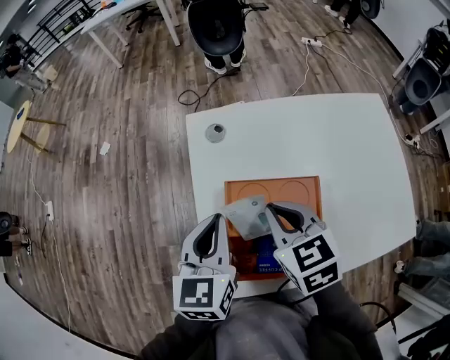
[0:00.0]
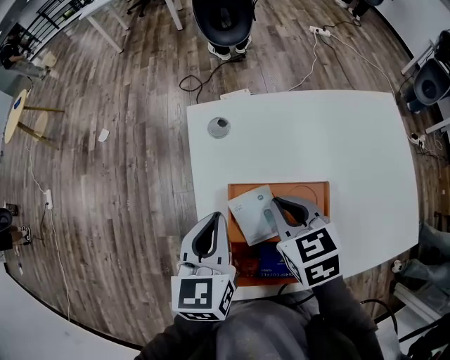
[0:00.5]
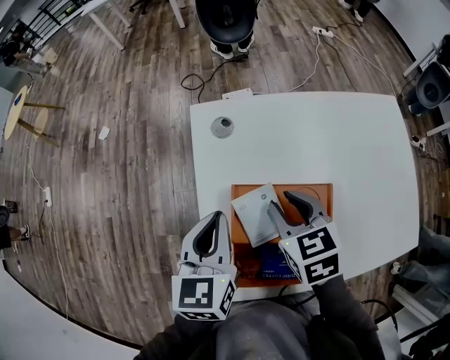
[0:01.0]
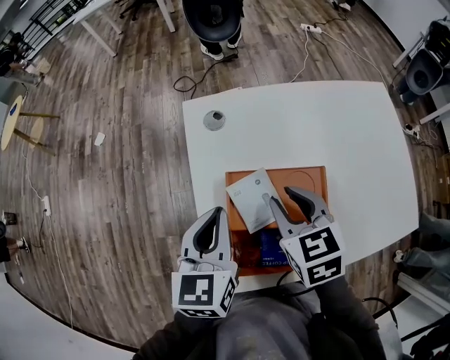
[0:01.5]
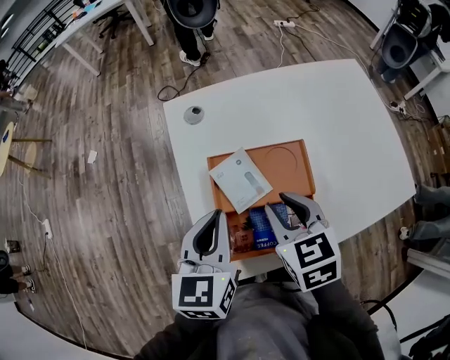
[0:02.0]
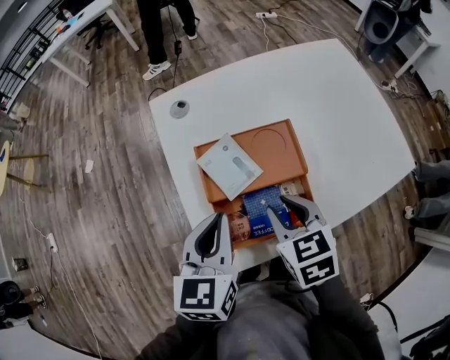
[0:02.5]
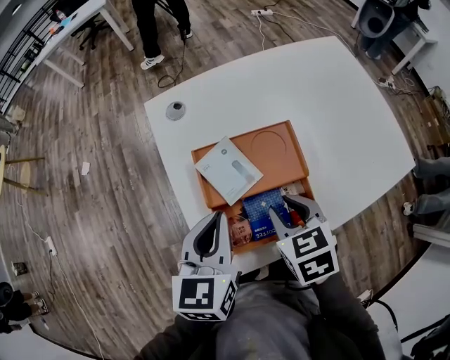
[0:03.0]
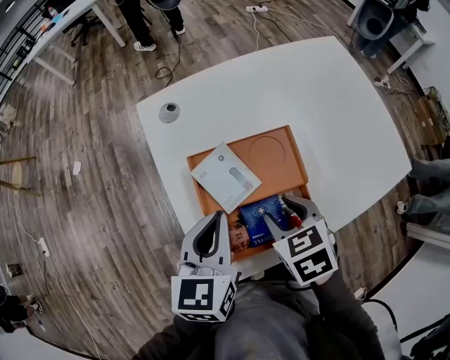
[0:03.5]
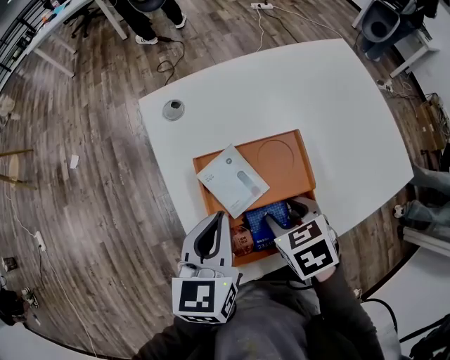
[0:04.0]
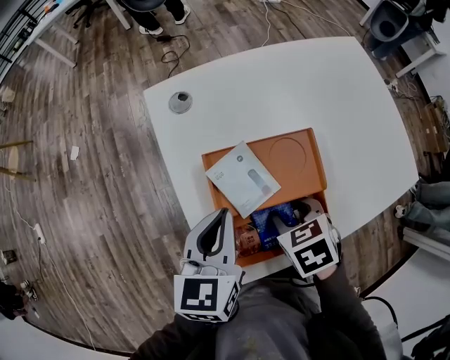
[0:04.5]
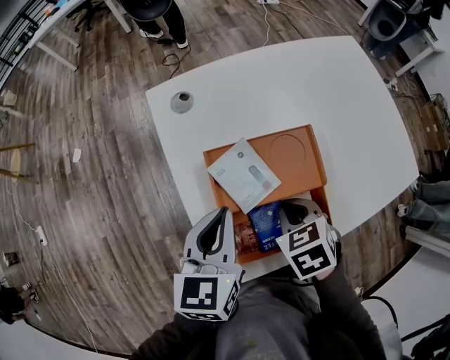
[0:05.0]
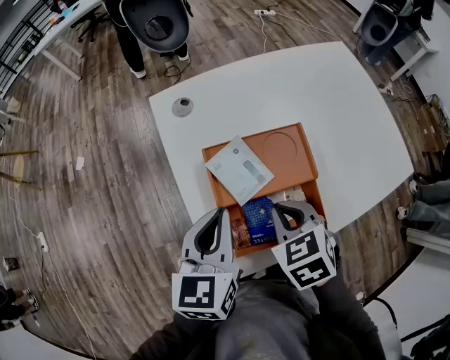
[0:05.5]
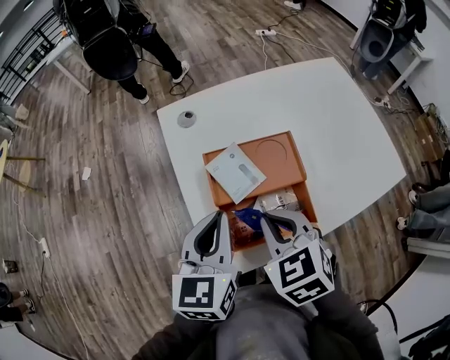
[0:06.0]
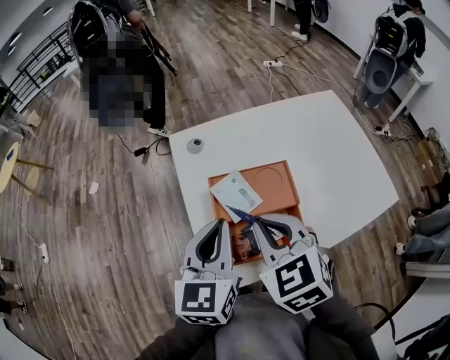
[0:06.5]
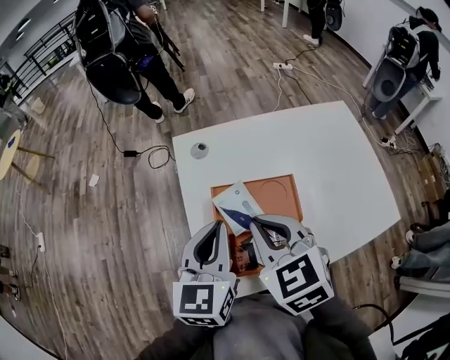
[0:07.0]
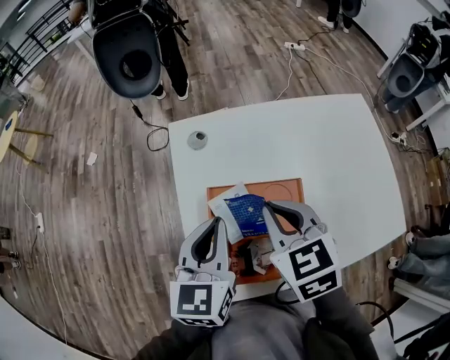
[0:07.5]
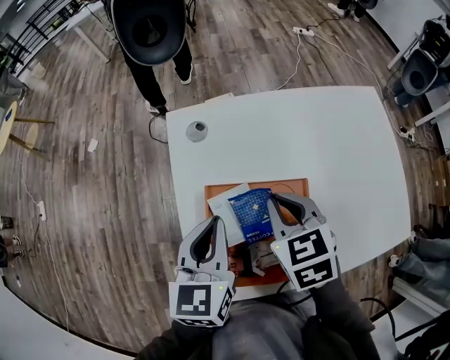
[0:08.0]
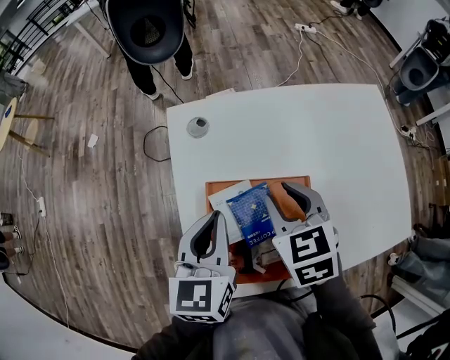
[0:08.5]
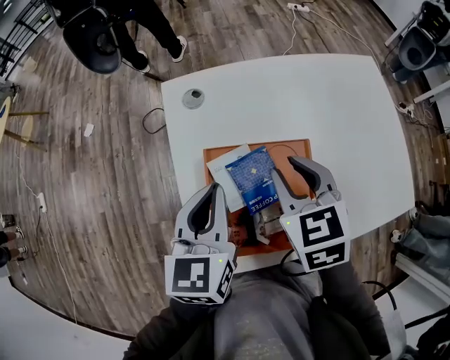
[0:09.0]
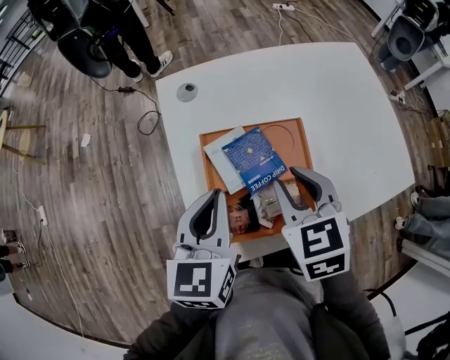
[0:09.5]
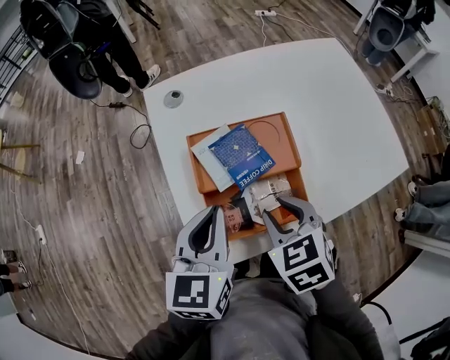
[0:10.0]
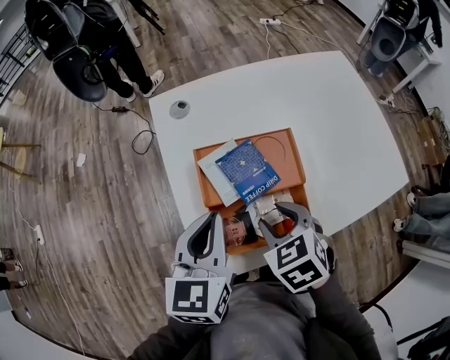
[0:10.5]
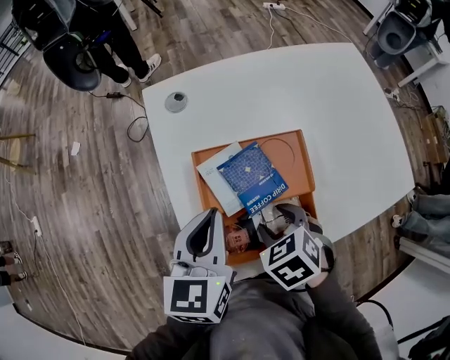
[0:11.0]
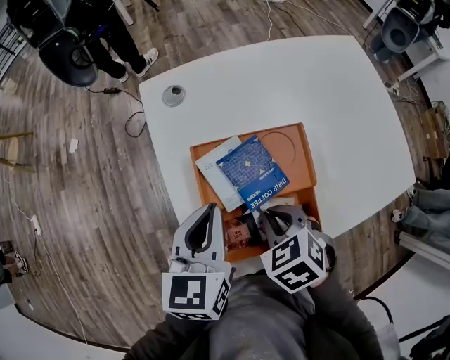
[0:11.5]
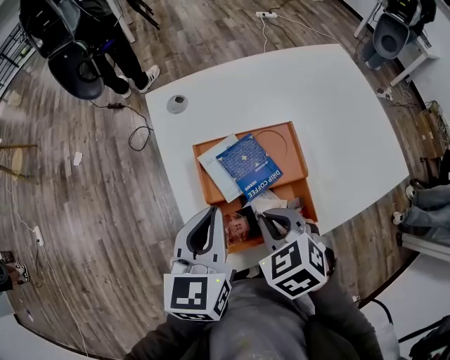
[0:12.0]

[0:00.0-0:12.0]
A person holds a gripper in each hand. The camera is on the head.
0:00.0 to 0:02.0: The right gripper shifts some 5 cm backward, and opens; the left gripper moves some 5 cm.
0:02.0 to 0:04.0: The right gripper goes roughly 10 cm downward, turns by about 20 degrees, and opens.
0:04.0 to 0:06.0: The right gripper moves upward and to the left, approximately 10 cm, changes its angle by about 20 degrees, and closes its fingers. The left gripper moves upward, roughly 5 cm.
0:06.0 to 0:08.0: The right gripper travels forward by approximately 15 cm. Meanwhile the left gripper is displaced forward by roughly 10 cm.
0:08.0 to 0:10.0: The left gripper heads backward, covering approximately 10 cm. Meanwhile the right gripper travels backward by about 15 cm, and opens.
0:10.0 to 0:12.0: The right gripper closes up.

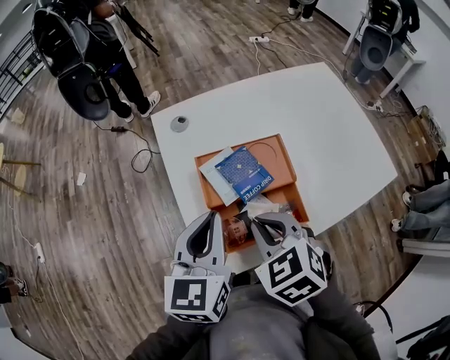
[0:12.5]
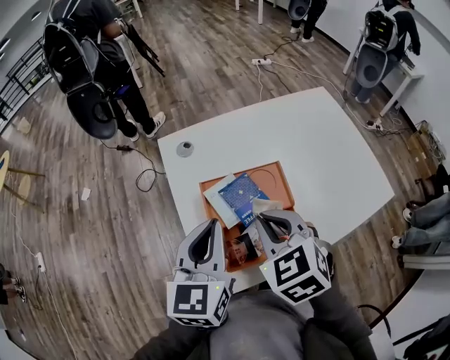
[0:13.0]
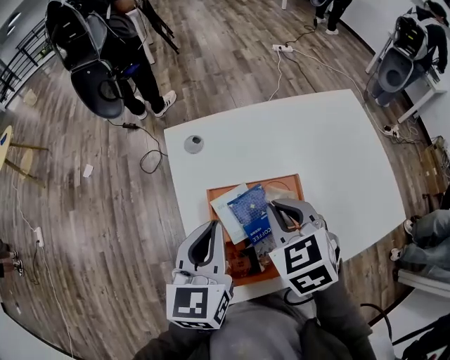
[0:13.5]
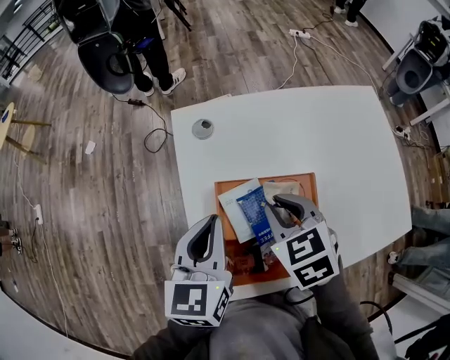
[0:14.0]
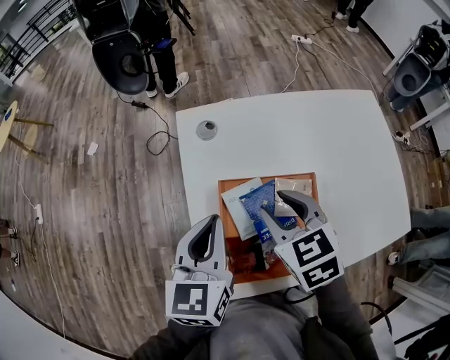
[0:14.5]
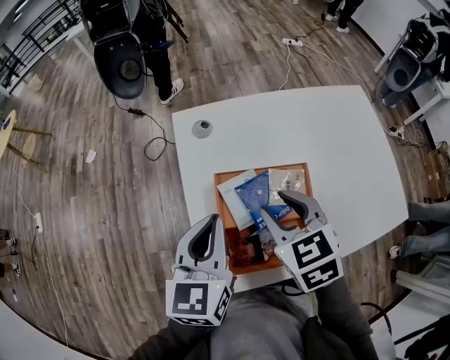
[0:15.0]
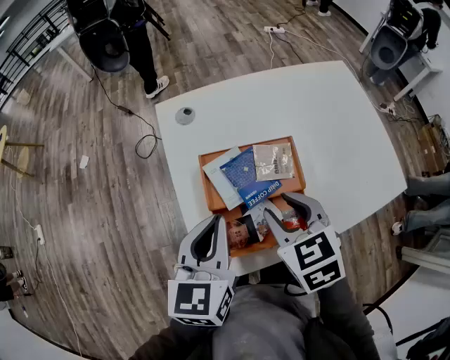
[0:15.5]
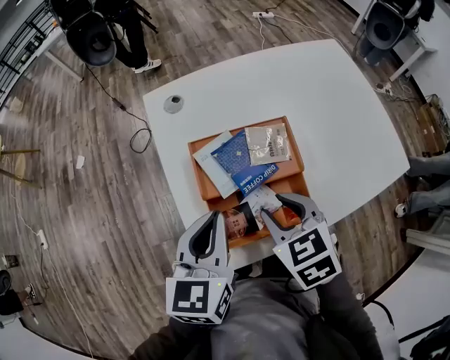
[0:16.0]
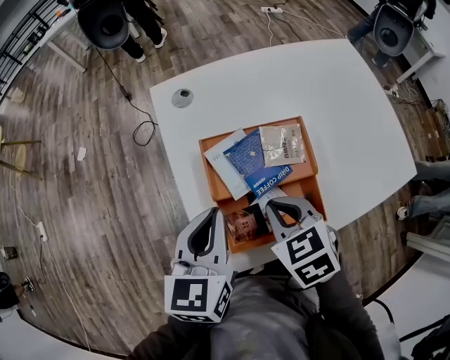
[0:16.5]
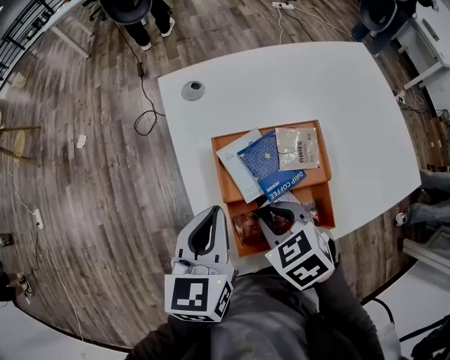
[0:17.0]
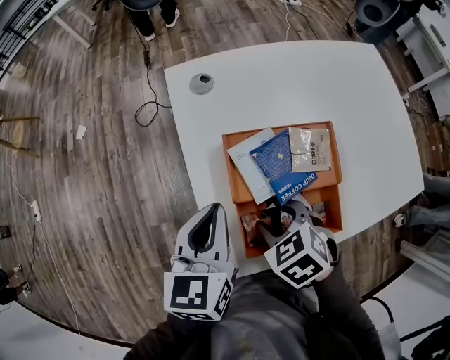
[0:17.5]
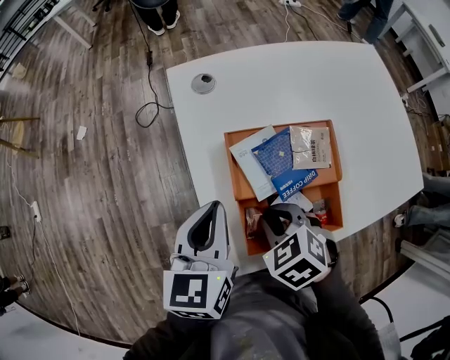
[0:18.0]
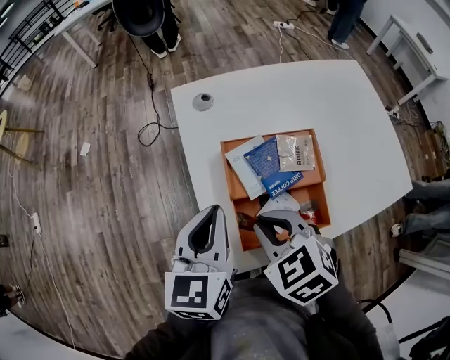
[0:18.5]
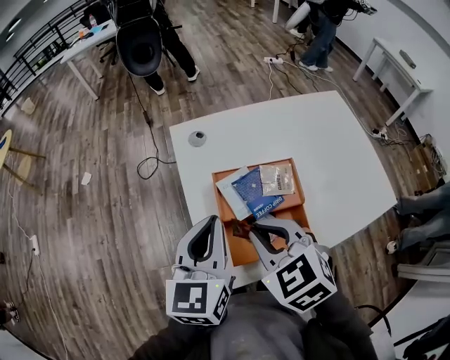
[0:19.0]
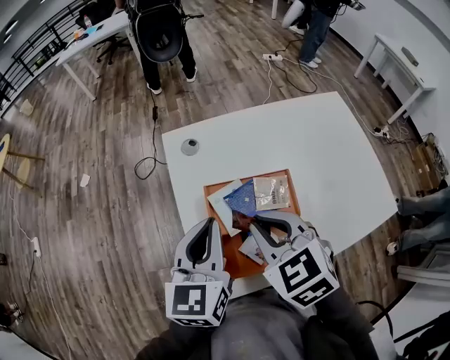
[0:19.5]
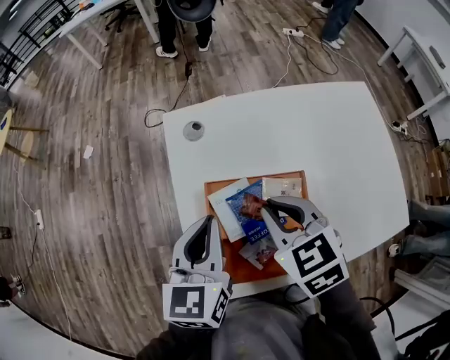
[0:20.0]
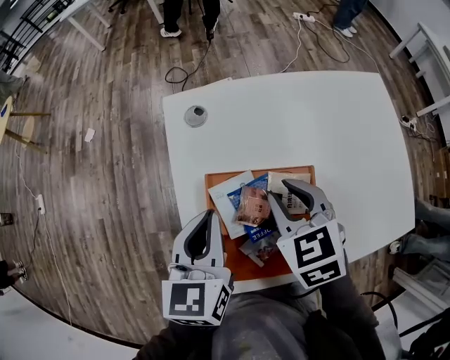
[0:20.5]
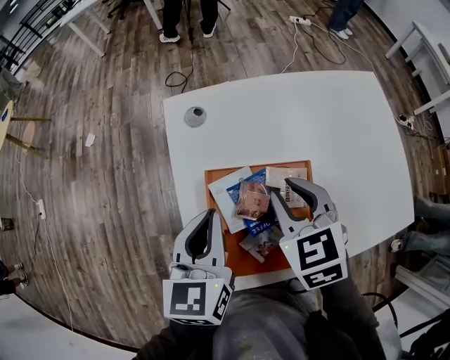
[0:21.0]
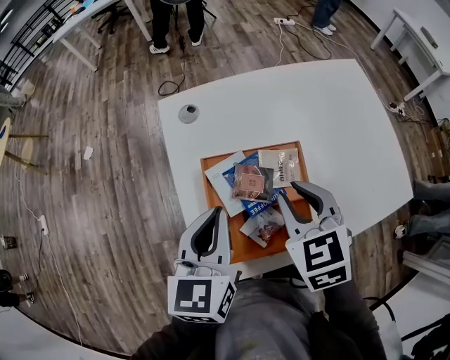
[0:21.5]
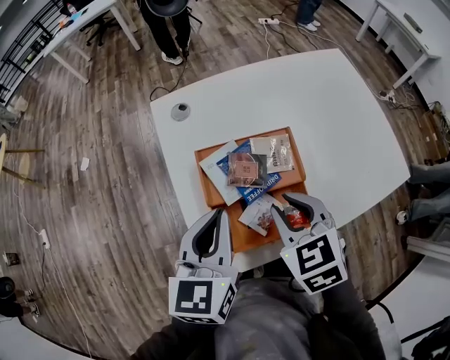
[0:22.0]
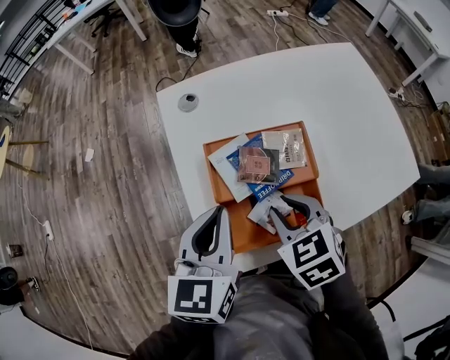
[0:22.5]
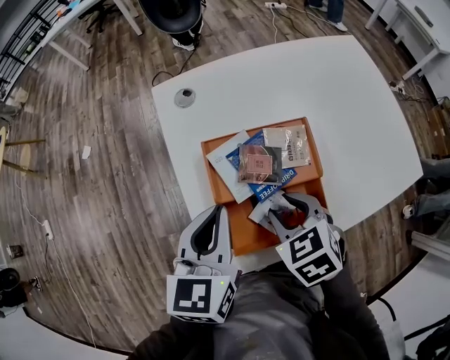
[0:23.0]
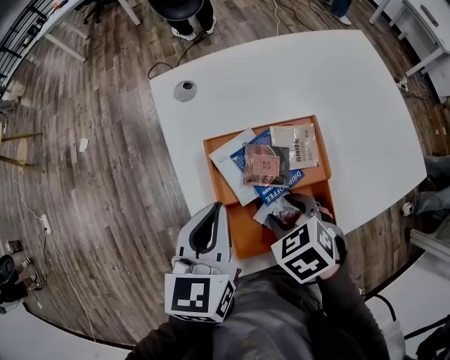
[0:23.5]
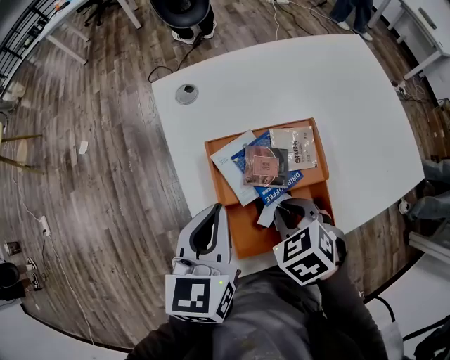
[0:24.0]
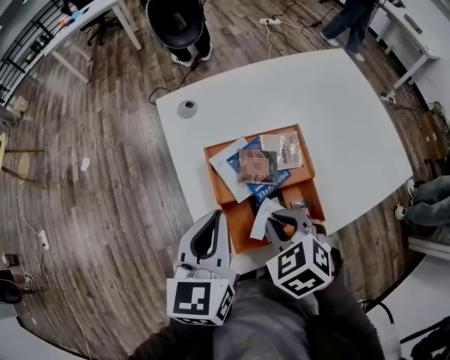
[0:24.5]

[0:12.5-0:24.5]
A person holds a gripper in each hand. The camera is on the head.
0:12.5 to 0:14.5: The right gripper goes approximately 15 cm forward, and opens its fingers; the left gripper moves forward, about 10 cm.
0:14.5 to 0:16.5: The right gripper travels backward and downward by about 10 cm, and closes its fingers, while the left gripper shifts about 5 cm backward.
0:16.5 to 0:18.5: The right gripper travels to the left by about 5 cm, and opens and closes again.
0:18.5 to 0:20.5: The right gripper travels forward and to the right by roughly 20 cm; the left gripper goes roughly 10 cm forward and to the right.
0:20.5 to 0:22.5: The right gripper shifts approximately 15 cm backward; the left gripper moves backward, approximately 10 cm.
0:22.5 to 0:24.5: The right gripper opens, then closes once more.

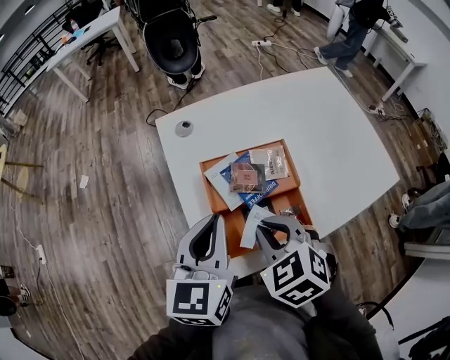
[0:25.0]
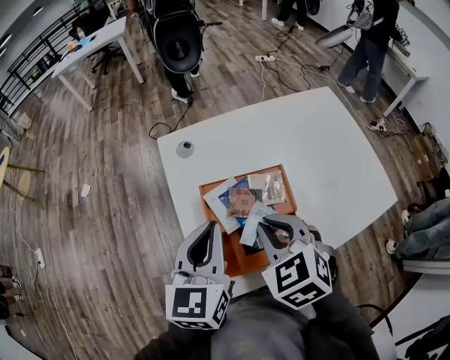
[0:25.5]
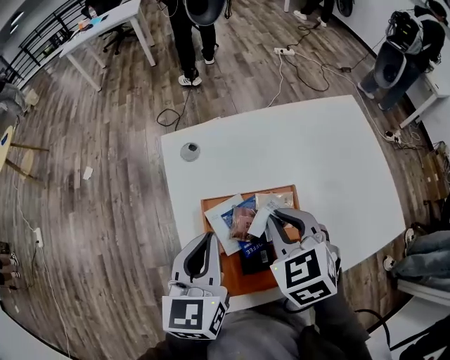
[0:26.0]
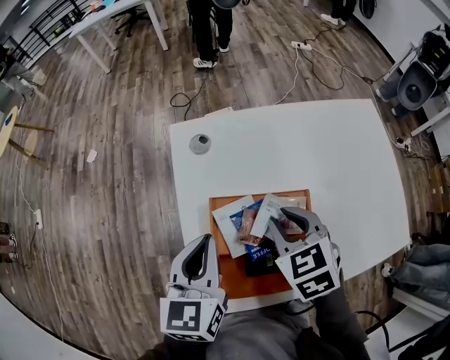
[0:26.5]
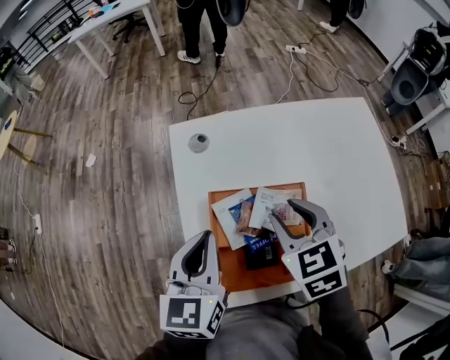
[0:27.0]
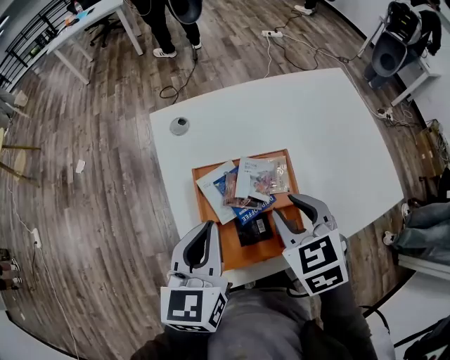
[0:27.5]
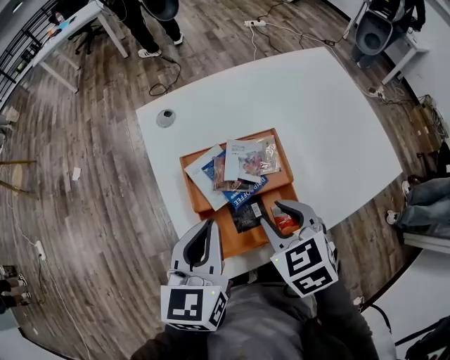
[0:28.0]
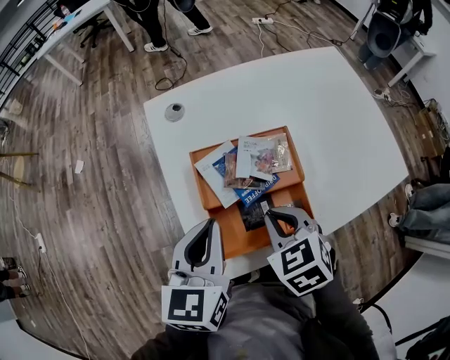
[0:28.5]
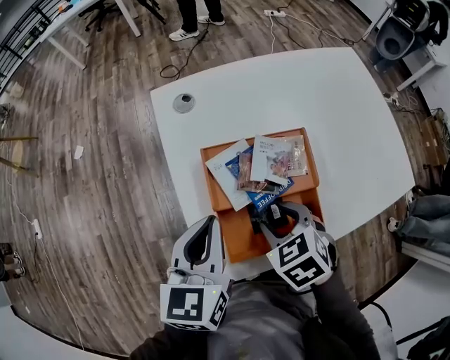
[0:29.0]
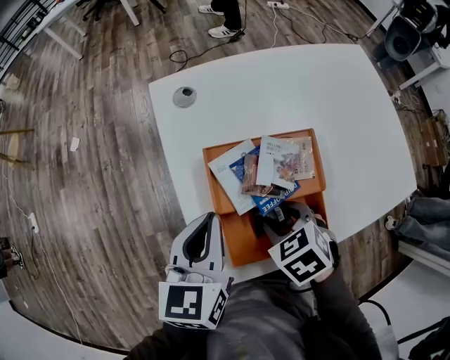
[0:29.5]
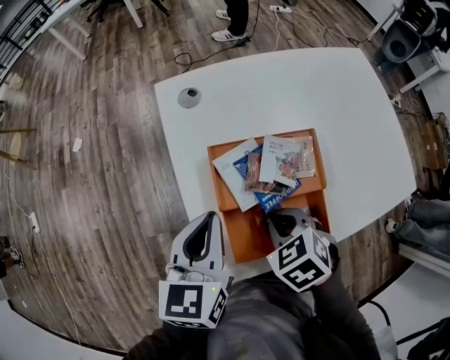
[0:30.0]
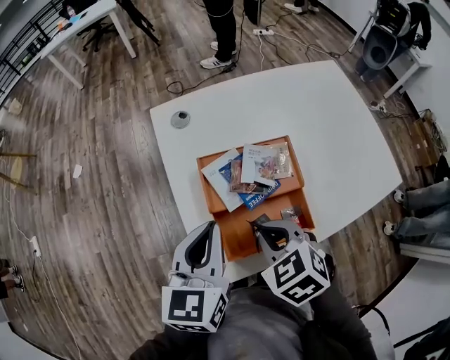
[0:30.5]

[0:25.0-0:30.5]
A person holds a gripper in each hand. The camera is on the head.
0:25.0 to 0:27.0: The left gripper shifts about 5 cm forward. The right gripper shifts roughly 15 cm forward and to the right, and opens up.
0:27.0 to 0:28.5: The right gripper moves backward and downward, roughly 15 cm, and closes. Meanwhile the left gripper heads backward, covering some 5 cm.
0:28.5 to 0:30.5: The right gripper travels downward and back again, roughly 5 cm each way, and opens and closes again.
